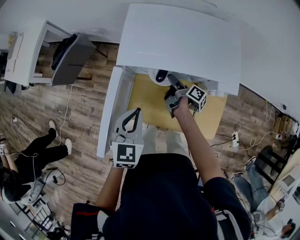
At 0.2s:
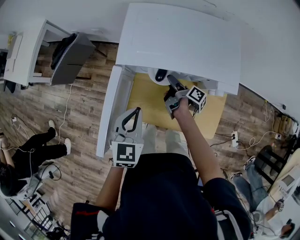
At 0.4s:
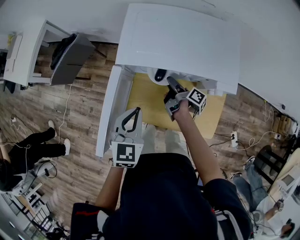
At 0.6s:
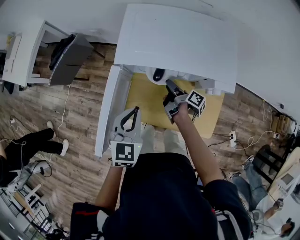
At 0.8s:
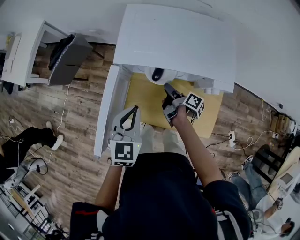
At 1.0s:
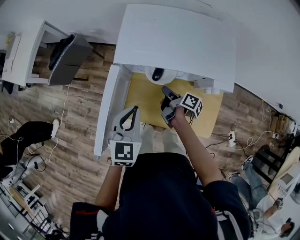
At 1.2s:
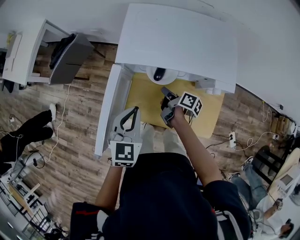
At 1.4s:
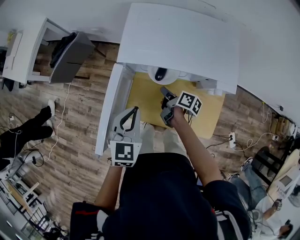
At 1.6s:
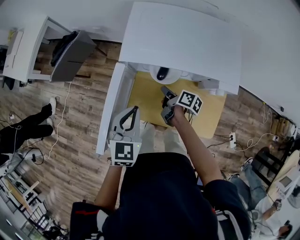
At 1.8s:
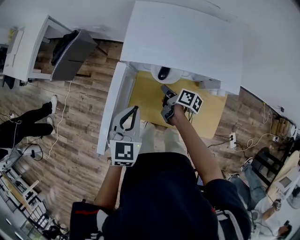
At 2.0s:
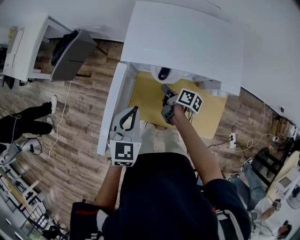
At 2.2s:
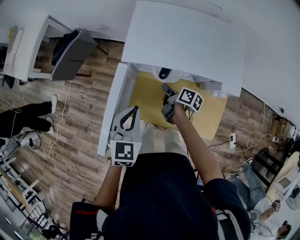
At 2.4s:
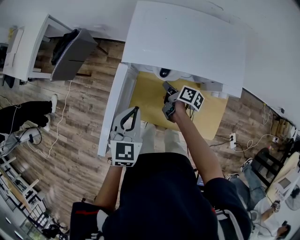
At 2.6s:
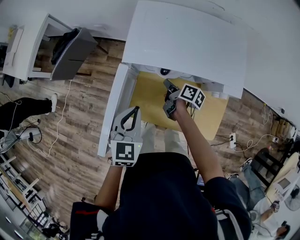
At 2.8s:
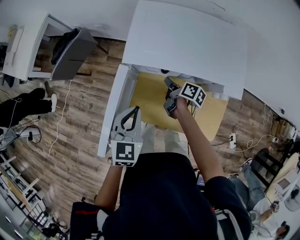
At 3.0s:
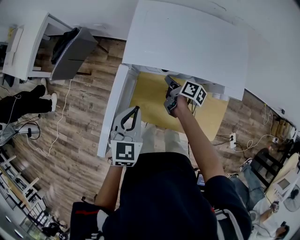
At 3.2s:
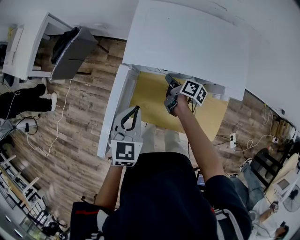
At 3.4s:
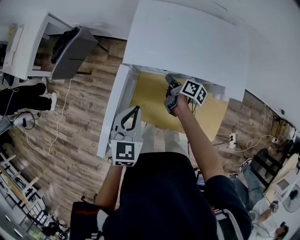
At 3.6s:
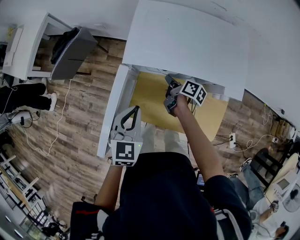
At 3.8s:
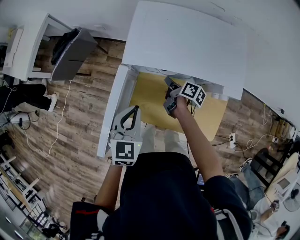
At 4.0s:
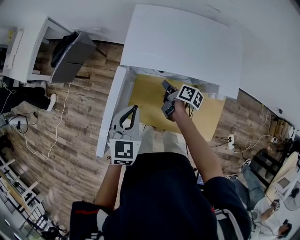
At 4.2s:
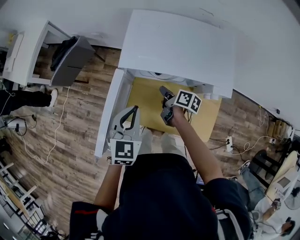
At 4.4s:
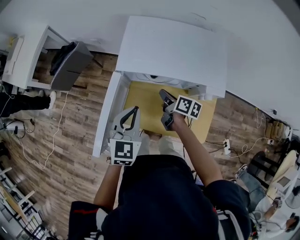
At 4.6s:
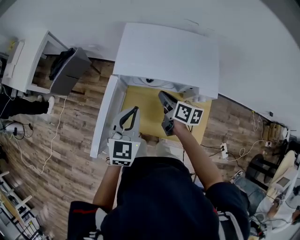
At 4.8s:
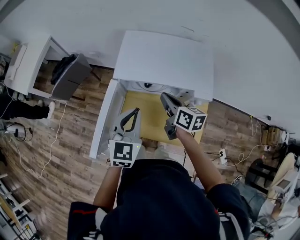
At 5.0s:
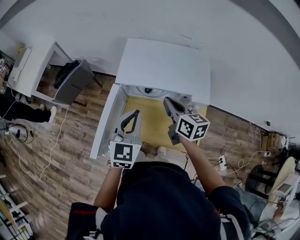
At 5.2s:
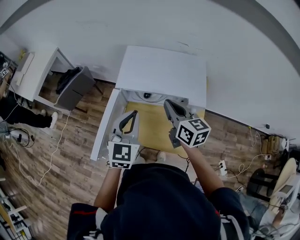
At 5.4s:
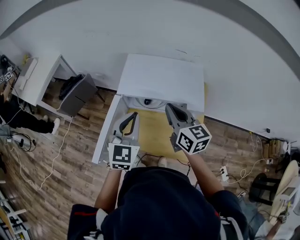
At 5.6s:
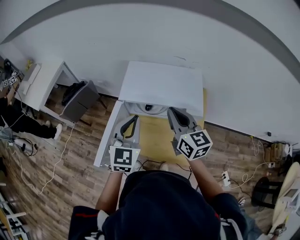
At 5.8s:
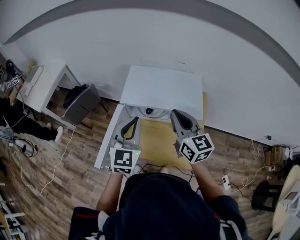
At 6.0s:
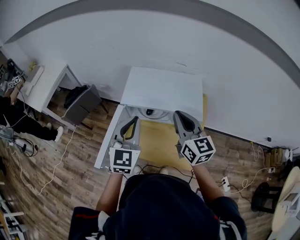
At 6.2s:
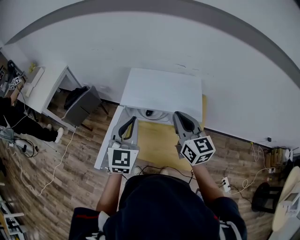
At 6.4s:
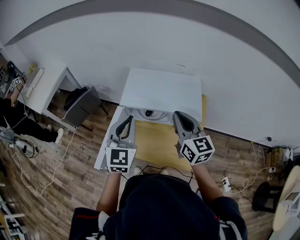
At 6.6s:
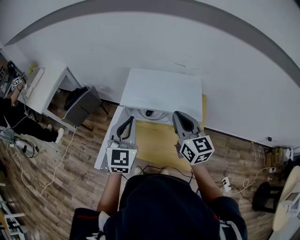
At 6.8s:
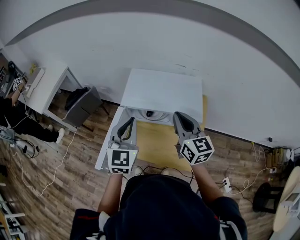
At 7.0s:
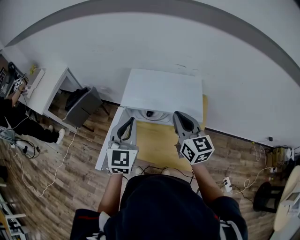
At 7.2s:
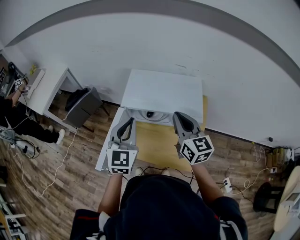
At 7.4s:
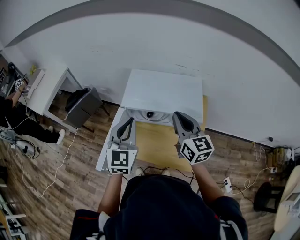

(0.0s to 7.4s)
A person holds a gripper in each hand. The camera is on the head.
3.0s - 4.4s: The left gripper shifts by roughly 5 cm.
4.4s - 6.0s: The left gripper goes some 15 cm upward, and rotates some 20 degrees.

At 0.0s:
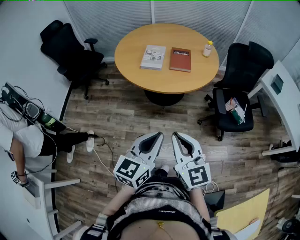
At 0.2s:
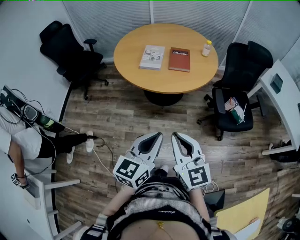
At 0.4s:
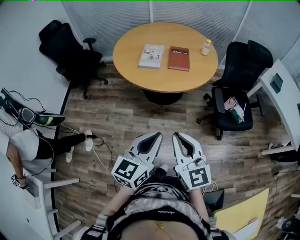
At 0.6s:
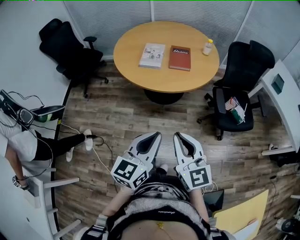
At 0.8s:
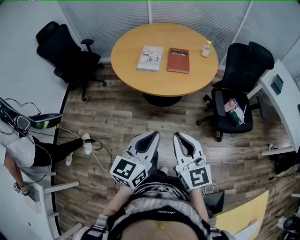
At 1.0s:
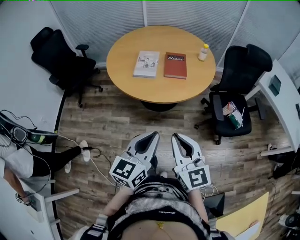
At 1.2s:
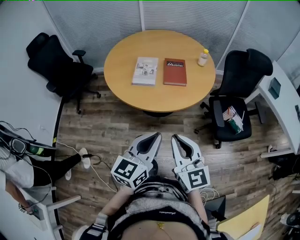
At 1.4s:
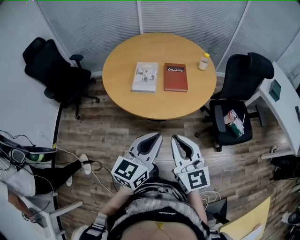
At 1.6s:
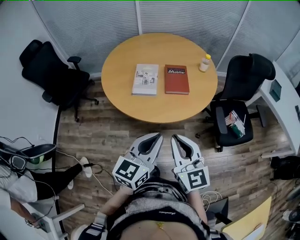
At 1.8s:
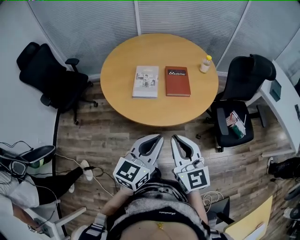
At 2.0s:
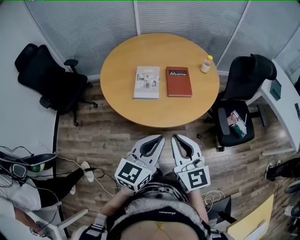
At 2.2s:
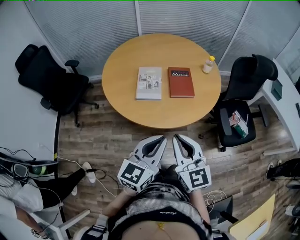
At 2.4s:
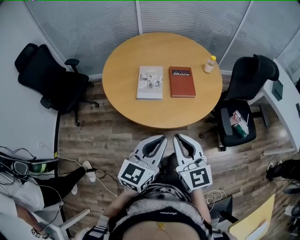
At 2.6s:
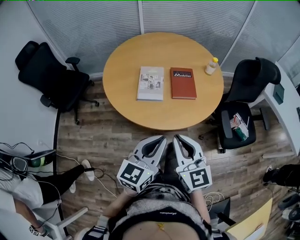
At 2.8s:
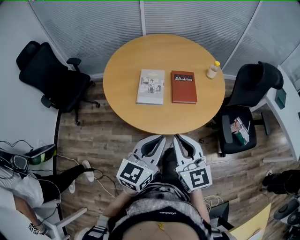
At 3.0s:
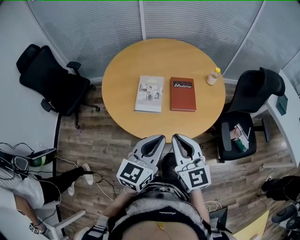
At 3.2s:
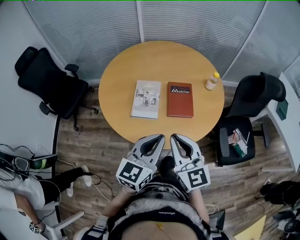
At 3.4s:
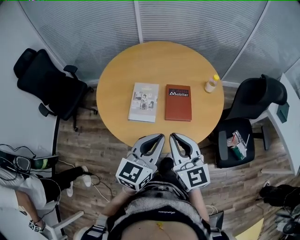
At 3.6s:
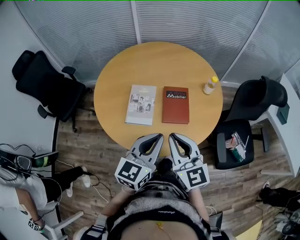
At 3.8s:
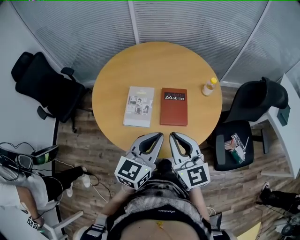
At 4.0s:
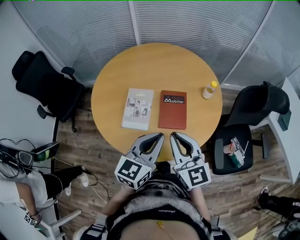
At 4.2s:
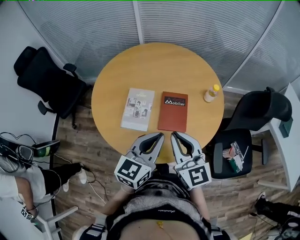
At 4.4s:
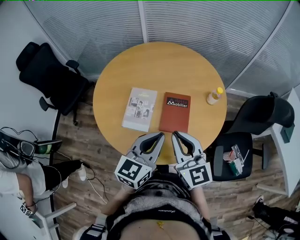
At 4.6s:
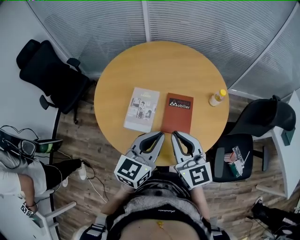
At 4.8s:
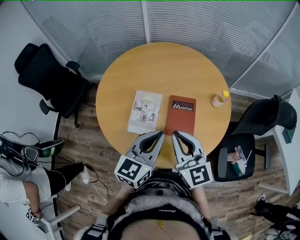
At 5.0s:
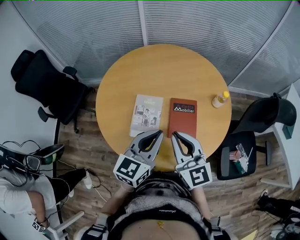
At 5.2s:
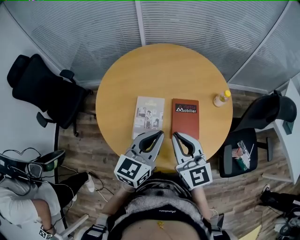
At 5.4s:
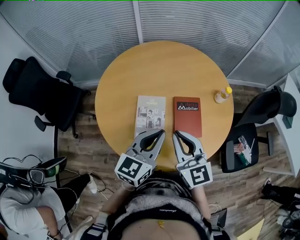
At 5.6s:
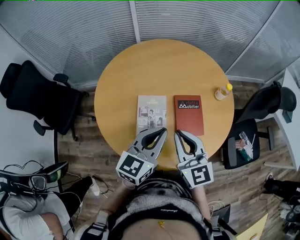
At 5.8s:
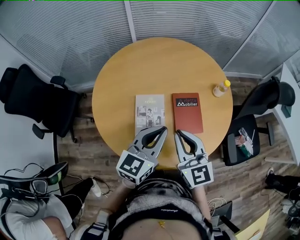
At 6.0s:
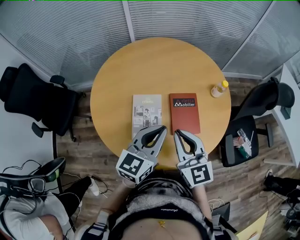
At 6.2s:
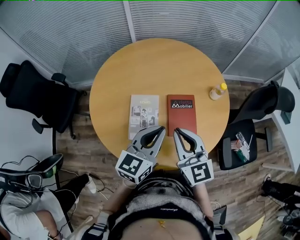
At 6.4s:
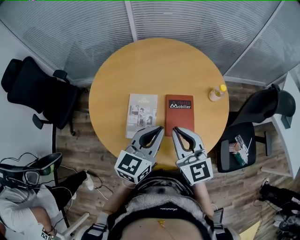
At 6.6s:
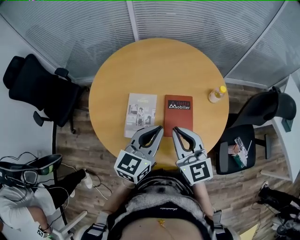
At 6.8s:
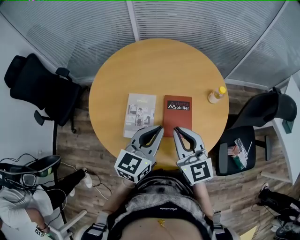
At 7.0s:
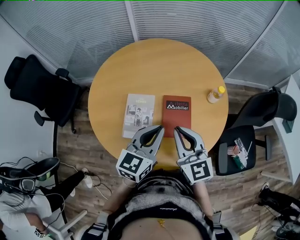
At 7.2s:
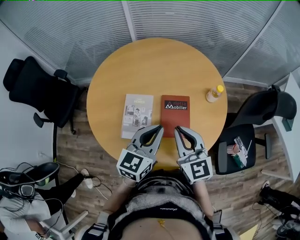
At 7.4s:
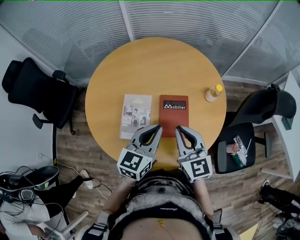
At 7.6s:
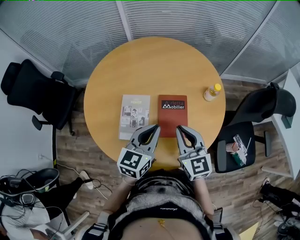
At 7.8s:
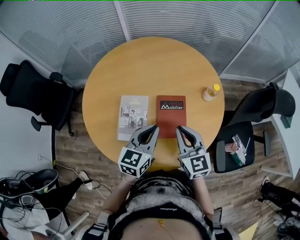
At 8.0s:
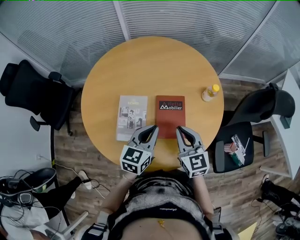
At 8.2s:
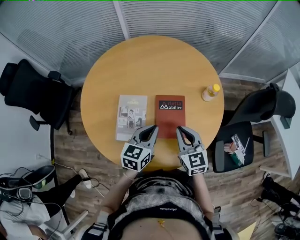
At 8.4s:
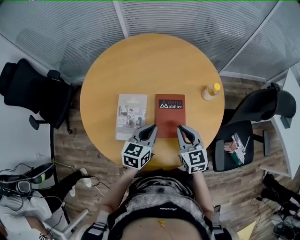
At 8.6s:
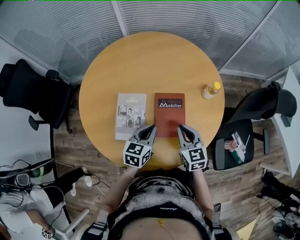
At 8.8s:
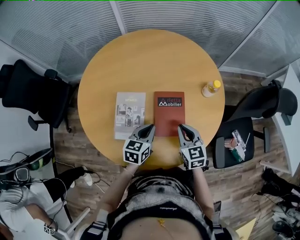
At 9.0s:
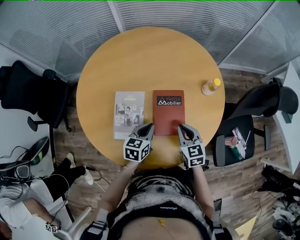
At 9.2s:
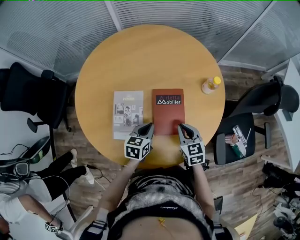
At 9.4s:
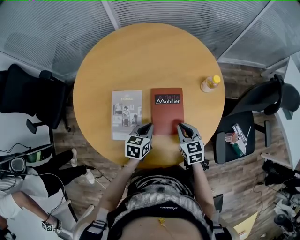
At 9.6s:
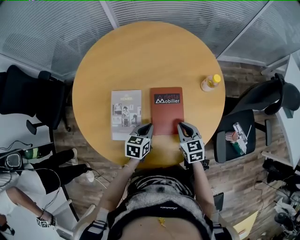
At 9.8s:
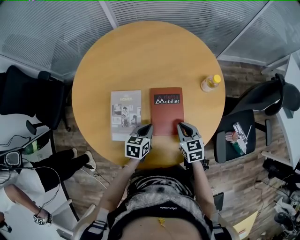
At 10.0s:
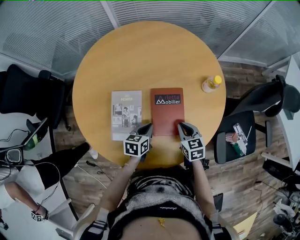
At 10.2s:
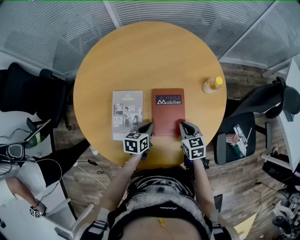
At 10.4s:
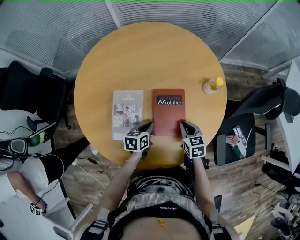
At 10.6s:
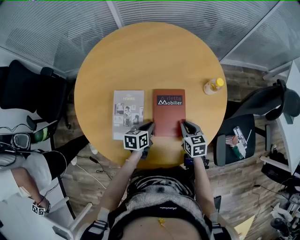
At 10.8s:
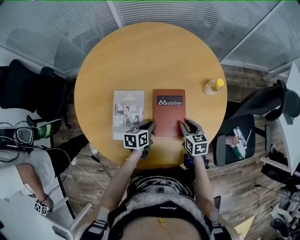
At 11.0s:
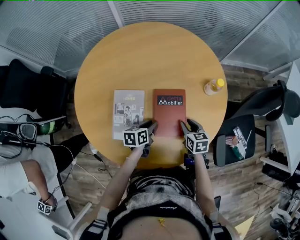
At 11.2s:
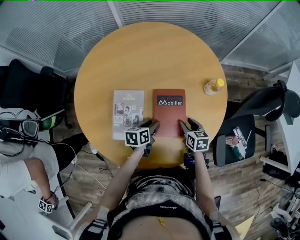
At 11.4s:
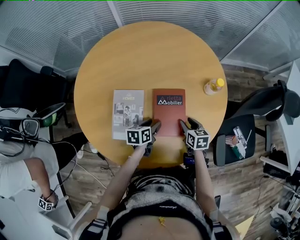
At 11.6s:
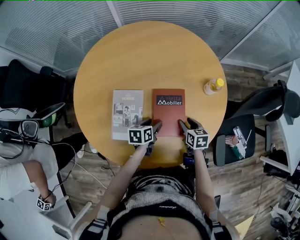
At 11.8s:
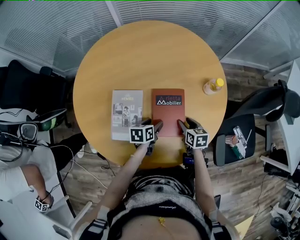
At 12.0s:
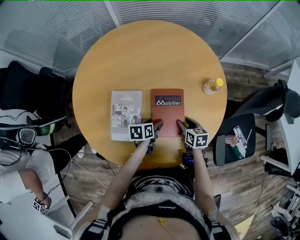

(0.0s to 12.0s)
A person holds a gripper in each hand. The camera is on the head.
0.0s - 1.6s: Both grippers move forward, approximately 20 cm.
1.6s - 3.0s: Both grippers move forward, about 15 cm.
3.0s - 4.4s: The grippers both shift forward and to the right by some 20 cm.
4.4s - 6.0s: The grippers both shift to the left and forward by roughly 10 cm.
6.0s - 7.6s: The right gripper heads to the right, covering roughly 10 cm; the left gripper travels to the right by approximately 5 cm.
7.6s - 9.0s: Both grippers move downward, approximately 15 cm. The right gripper rotates roughly 20 degrees; the left gripper changes its angle by roughly 20 degrees.
9.0s - 10.4s: Both grippers travel together downward, about 5 cm.
10.4s - 12.0s: The right gripper changes place by about 5 cm, and opens. Meanwhile the left gripper opens.

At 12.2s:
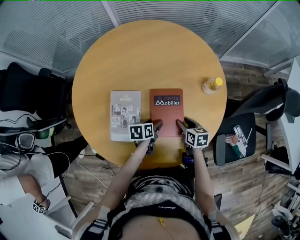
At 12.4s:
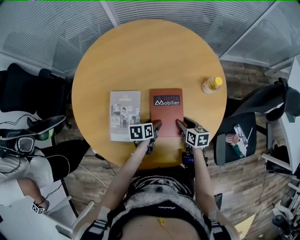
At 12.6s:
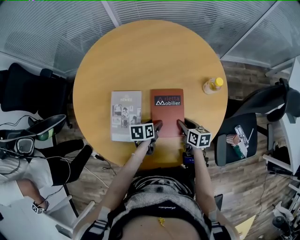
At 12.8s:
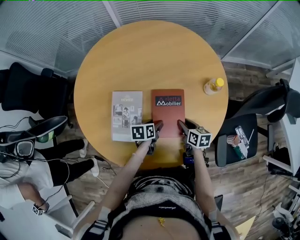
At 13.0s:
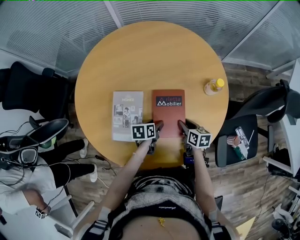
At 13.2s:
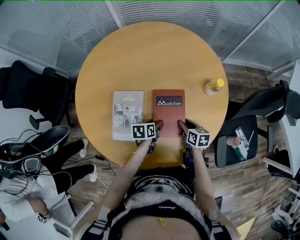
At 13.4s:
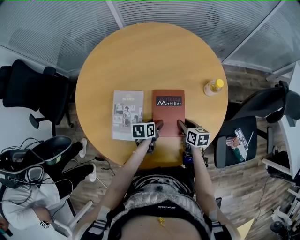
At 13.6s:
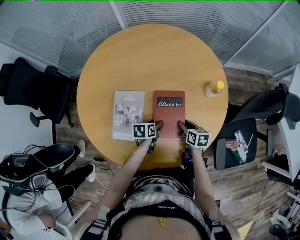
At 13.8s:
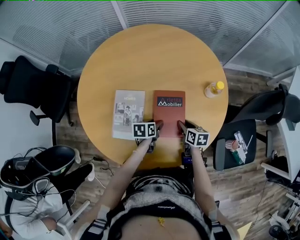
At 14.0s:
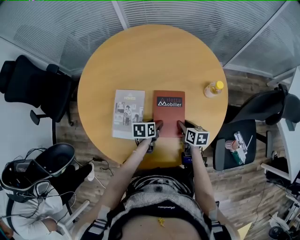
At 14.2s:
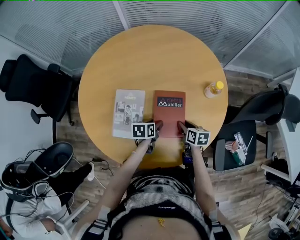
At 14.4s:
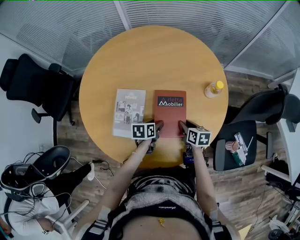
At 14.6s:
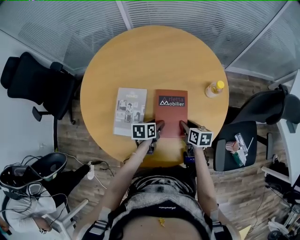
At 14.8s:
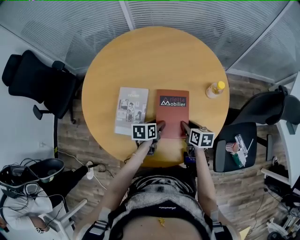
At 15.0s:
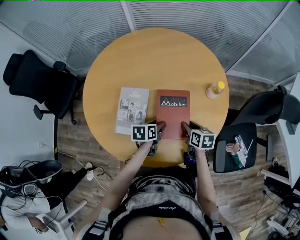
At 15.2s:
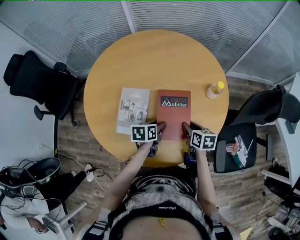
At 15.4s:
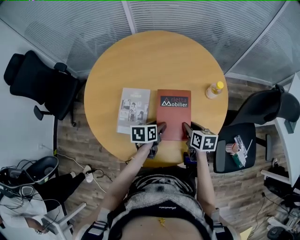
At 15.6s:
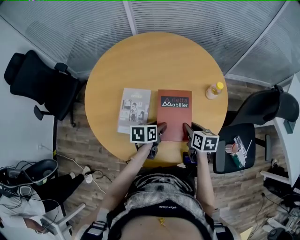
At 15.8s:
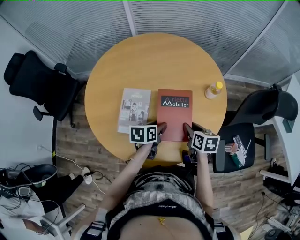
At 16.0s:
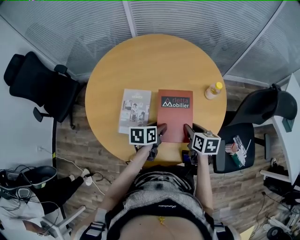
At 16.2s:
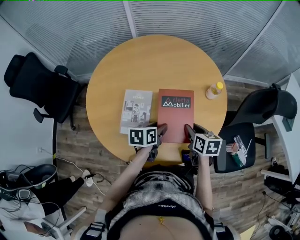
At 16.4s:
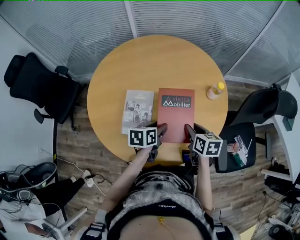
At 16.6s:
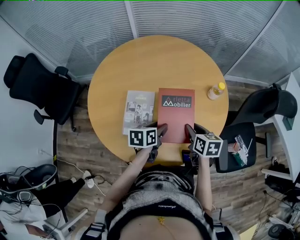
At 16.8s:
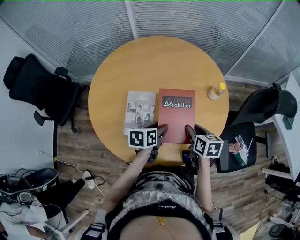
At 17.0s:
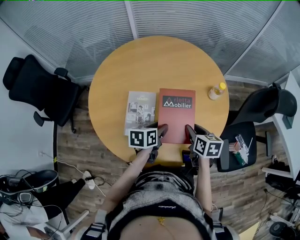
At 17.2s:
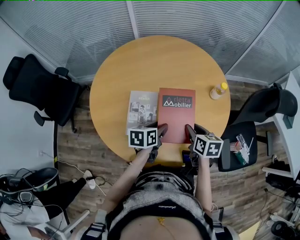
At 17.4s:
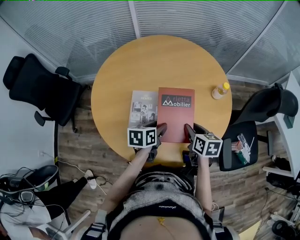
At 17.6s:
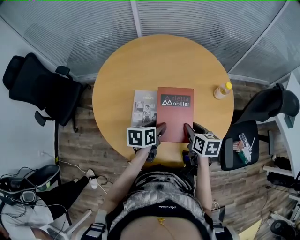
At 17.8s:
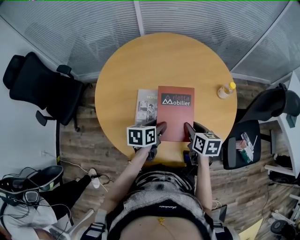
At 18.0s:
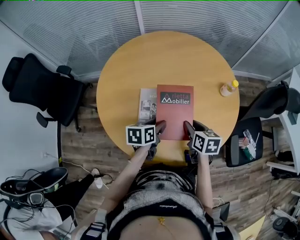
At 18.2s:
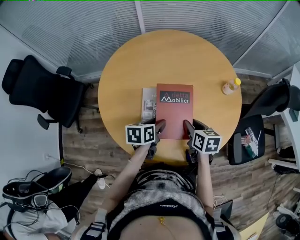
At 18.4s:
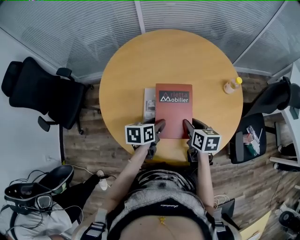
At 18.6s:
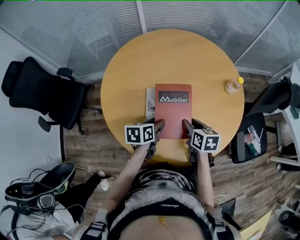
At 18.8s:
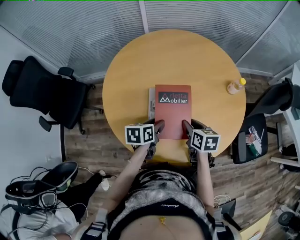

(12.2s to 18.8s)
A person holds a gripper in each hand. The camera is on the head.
12.2s - 13.8s: The grippers make only small movements.
13.8s - 15.4s: The grippers both shift upward by roughly 10 cm.
15.4s - 17.2s: The two grippers go about 5 cm upward.
17.2s - 18.8s: Both grippers move to the left, approximately 15 cm.
